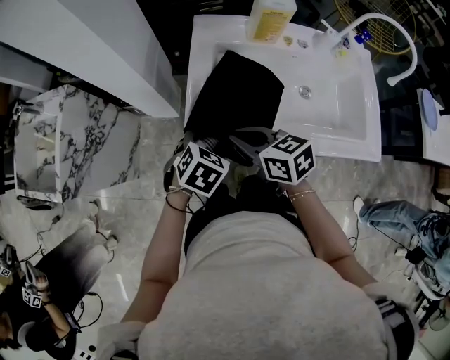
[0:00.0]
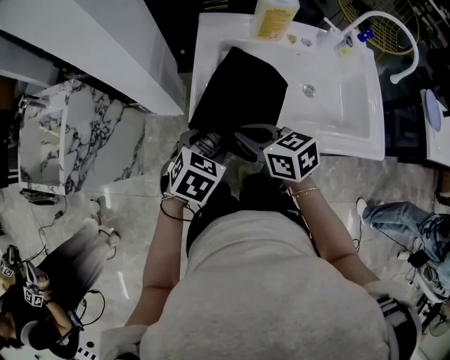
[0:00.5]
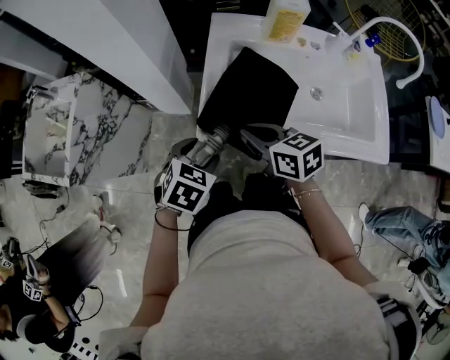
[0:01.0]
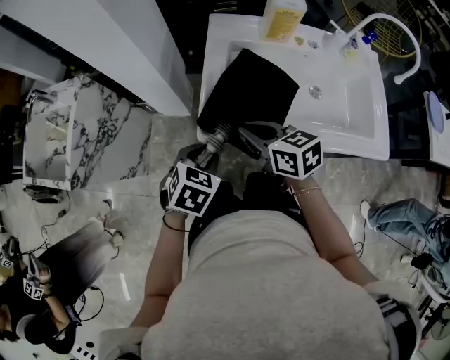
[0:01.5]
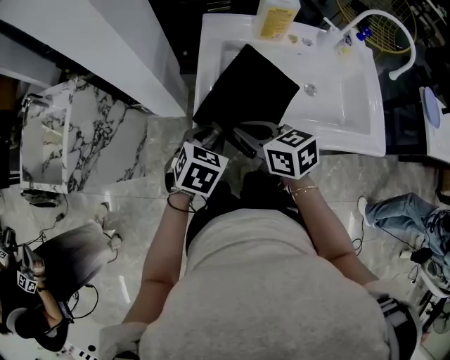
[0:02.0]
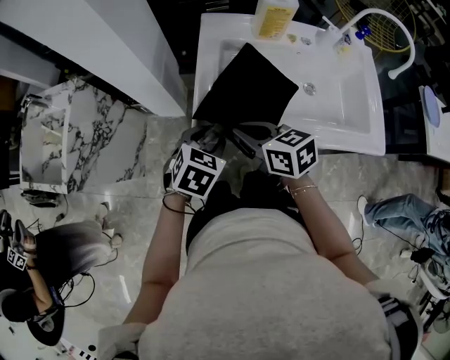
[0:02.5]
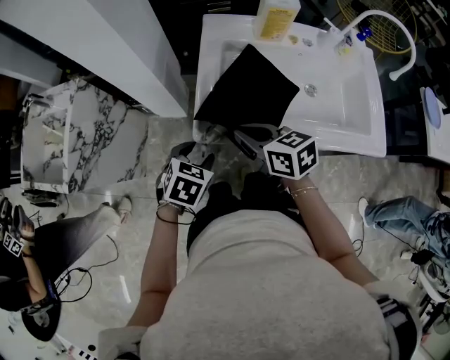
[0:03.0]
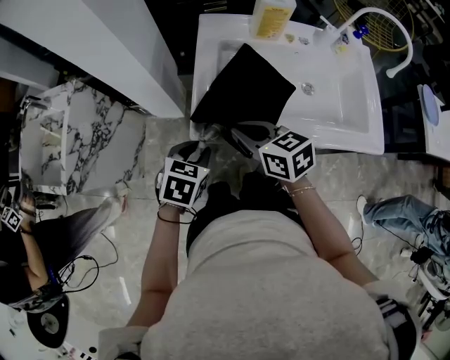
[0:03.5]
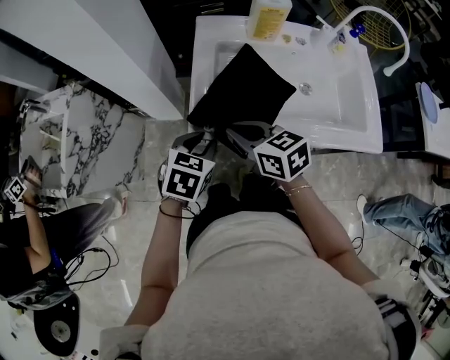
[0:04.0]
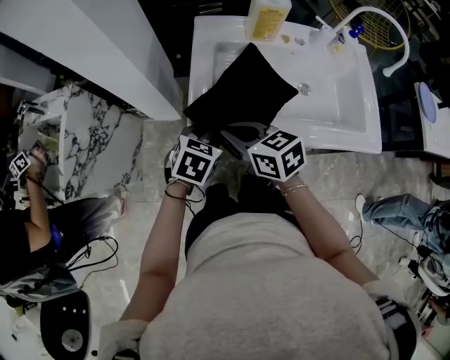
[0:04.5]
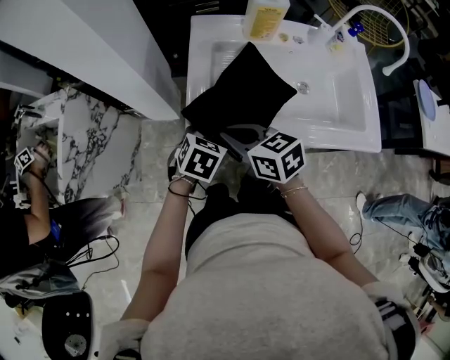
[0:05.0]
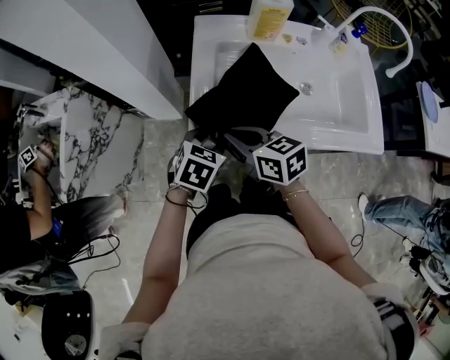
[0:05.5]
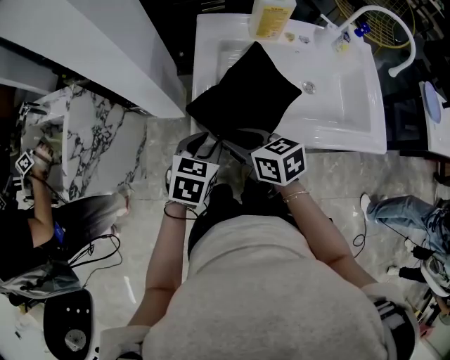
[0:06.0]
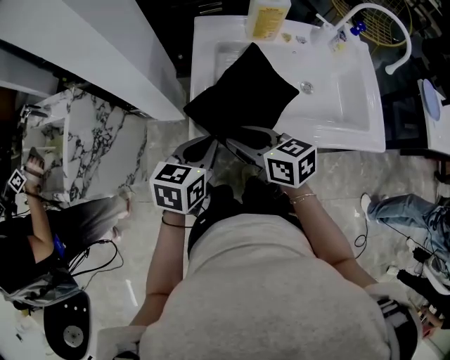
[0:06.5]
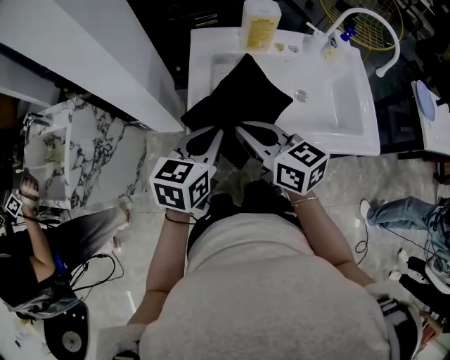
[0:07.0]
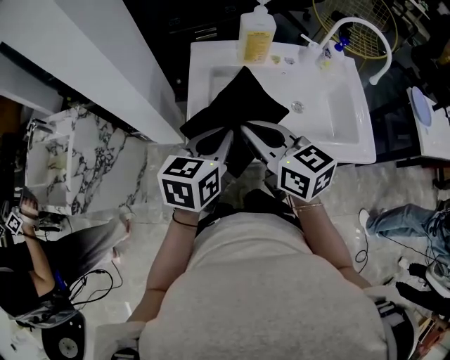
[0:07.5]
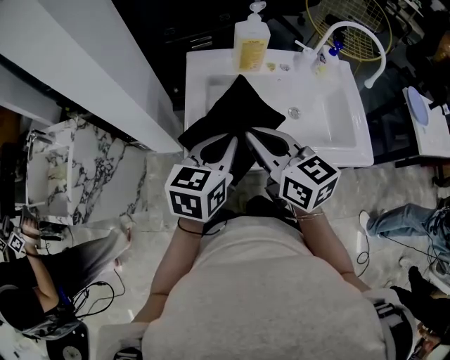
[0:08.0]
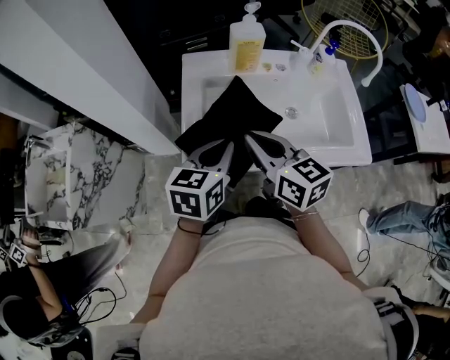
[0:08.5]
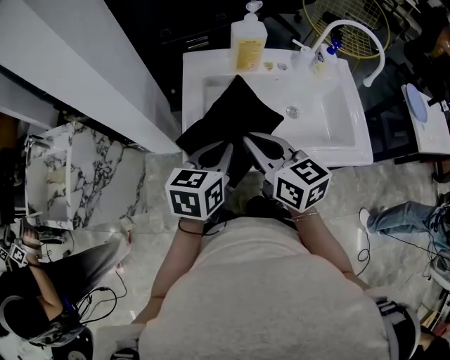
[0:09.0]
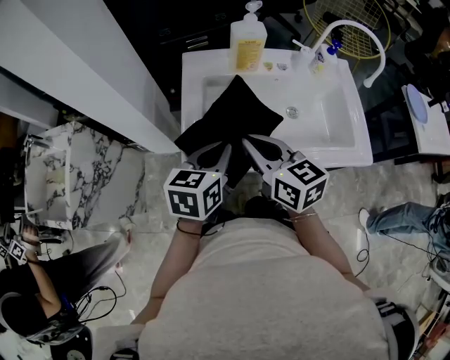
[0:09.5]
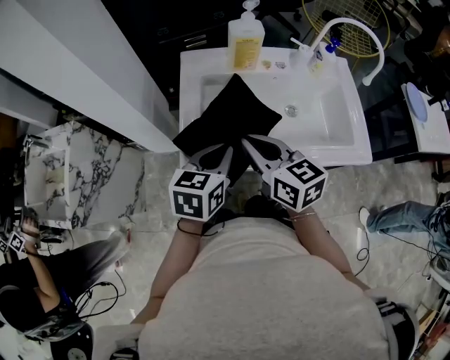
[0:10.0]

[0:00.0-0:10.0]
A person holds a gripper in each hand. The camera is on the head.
0:00.0 to 0:02.0: The left gripper closes its fingers.
0:02.0 to 0:04.0: The left gripper opens, then closes once more.
0:04.0 to 0:06.0: The right gripper opens up.
0:06.0 to 0:08.0: The grippers both shift upward and to the right by roughly 15 cm. The left gripper swivels about 20 degrees, and closes, while the right gripper turns by approximately 30 degrees, and closes up.
0:08.0 to 0:10.0: The grippers move only a little.

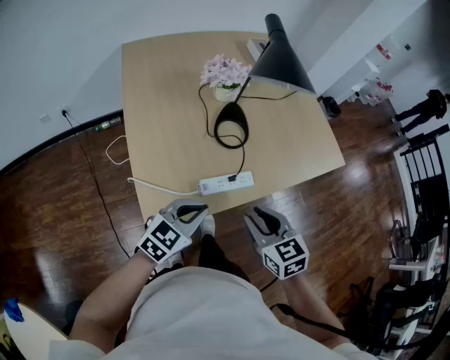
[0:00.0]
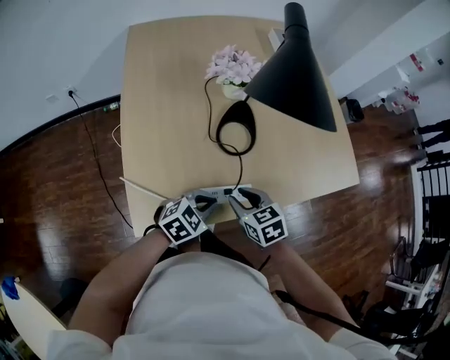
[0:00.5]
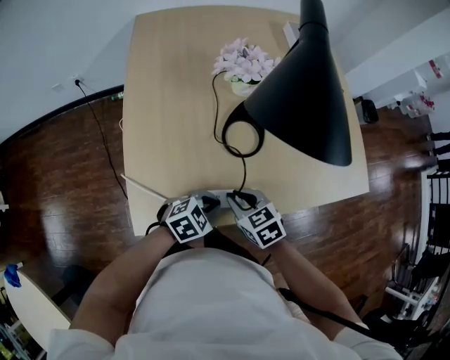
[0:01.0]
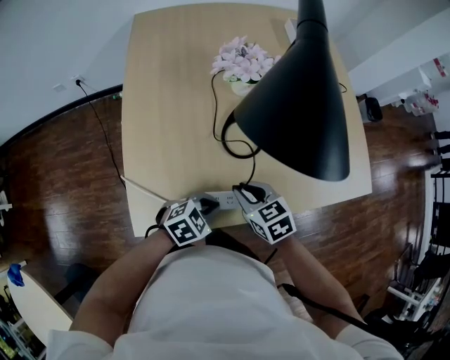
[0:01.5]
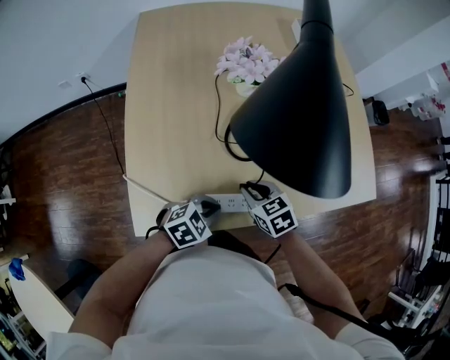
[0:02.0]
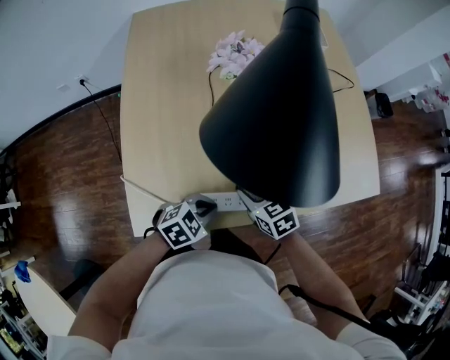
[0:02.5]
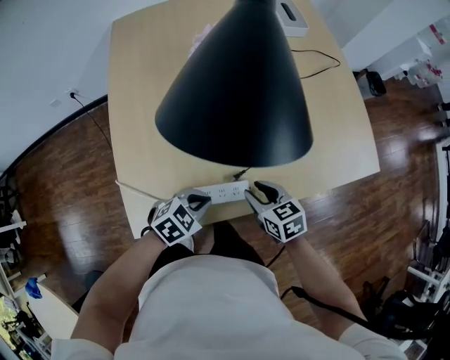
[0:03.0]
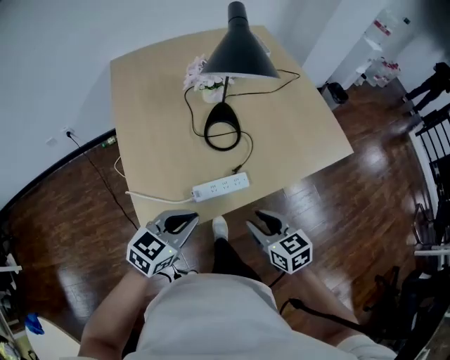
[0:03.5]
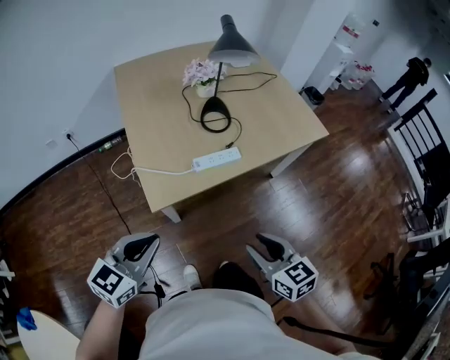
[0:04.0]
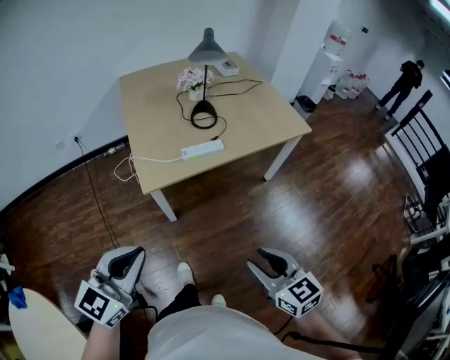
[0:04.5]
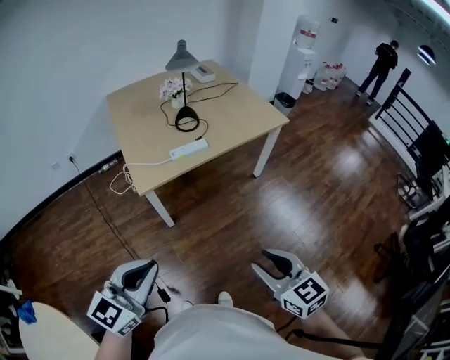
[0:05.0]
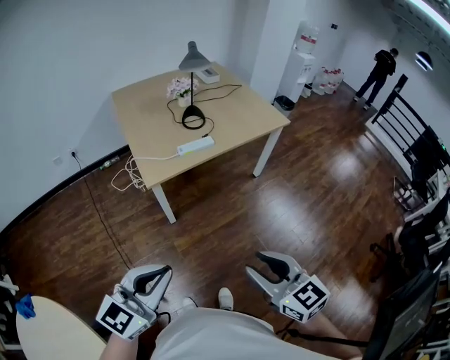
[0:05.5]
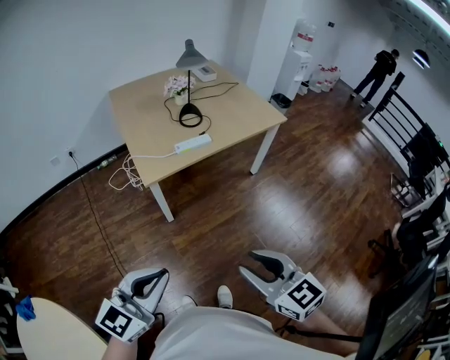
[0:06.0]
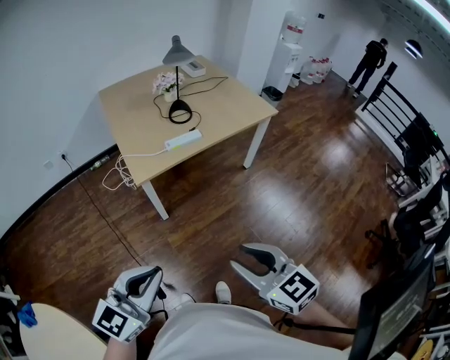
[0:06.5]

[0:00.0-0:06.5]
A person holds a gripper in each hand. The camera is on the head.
0:00.0 to 0:02.0: The left gripper is displaced downward by roughly 15 cm, and changes its angle by about 30 degrees. The right gripper shifts by roughly 25 cm, and changes its angle by some 20 degrees.
0:02.0 to 0:04.5: The two grippers travel together, approximately 50 cm. The right gripper turns by roughly 30 degrees. The left gripper points its fingers roughly 40 degrees further upward.
0:04.5 to 0:06.5: The right gripper is displaced backward and upward by roughly 15 cm. The left gripper goes roughly 15 cm backward.

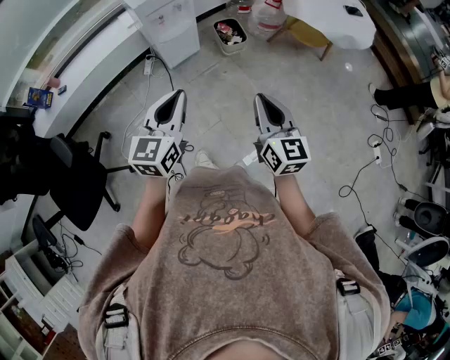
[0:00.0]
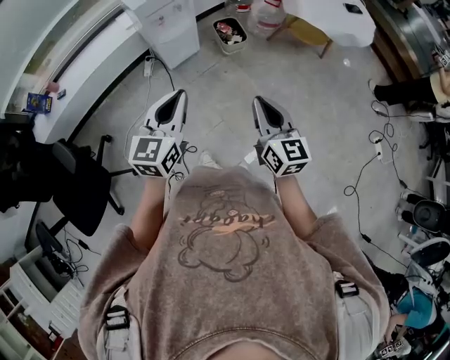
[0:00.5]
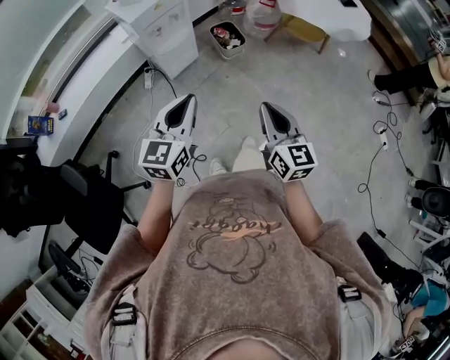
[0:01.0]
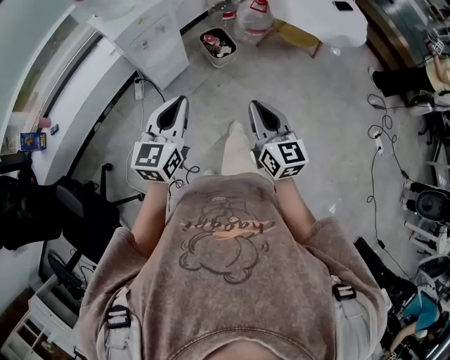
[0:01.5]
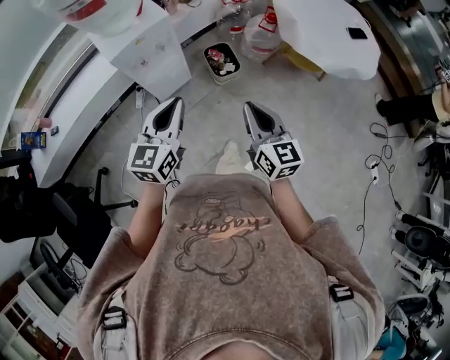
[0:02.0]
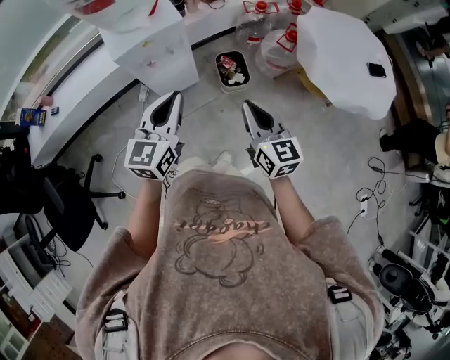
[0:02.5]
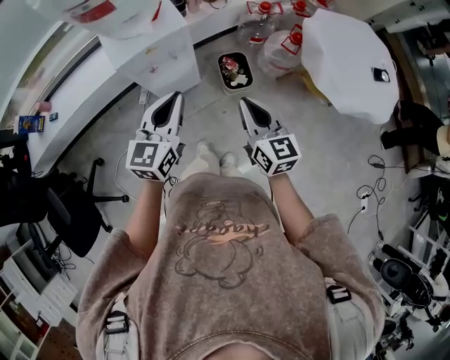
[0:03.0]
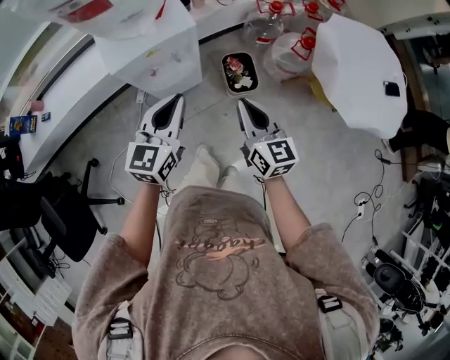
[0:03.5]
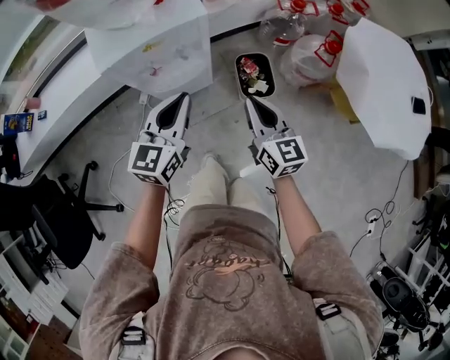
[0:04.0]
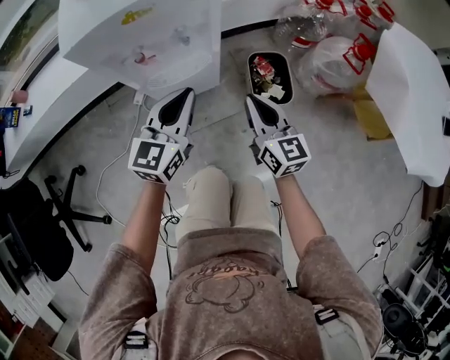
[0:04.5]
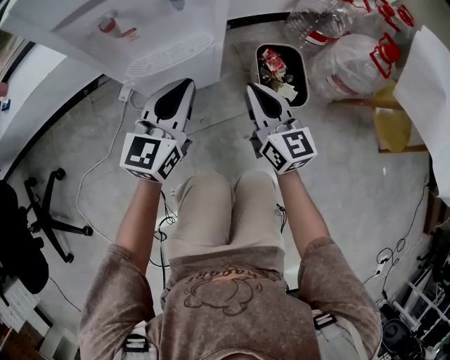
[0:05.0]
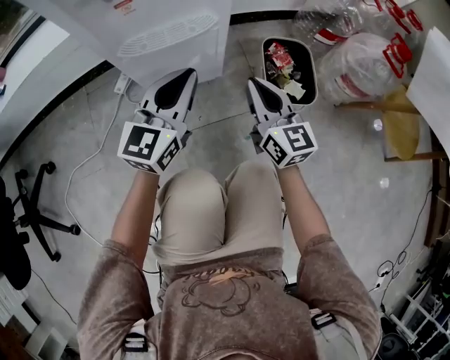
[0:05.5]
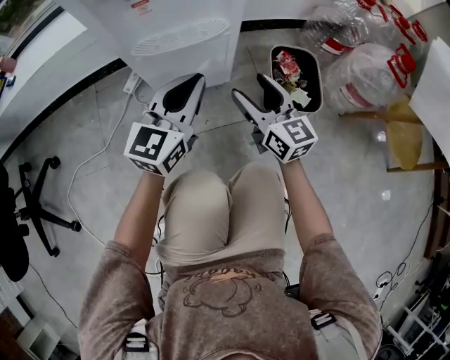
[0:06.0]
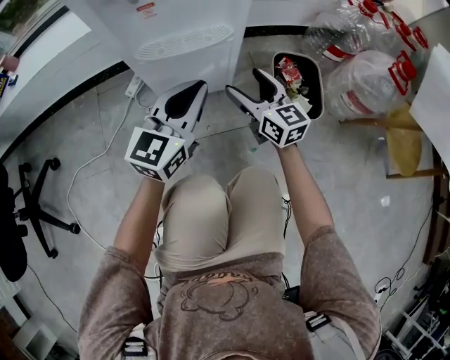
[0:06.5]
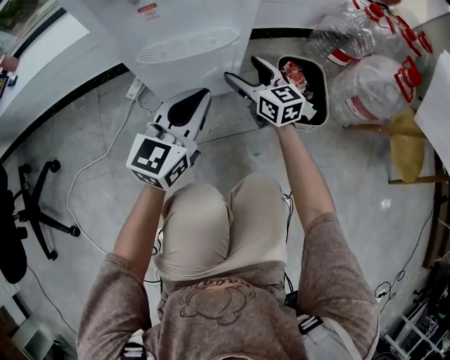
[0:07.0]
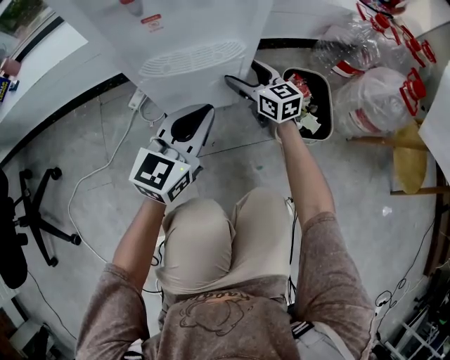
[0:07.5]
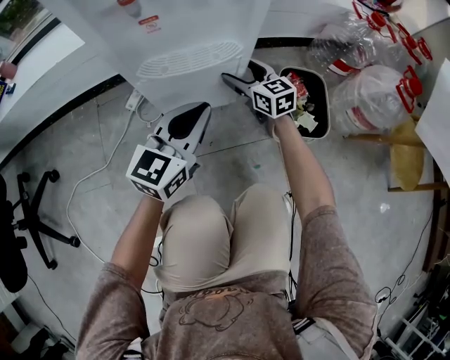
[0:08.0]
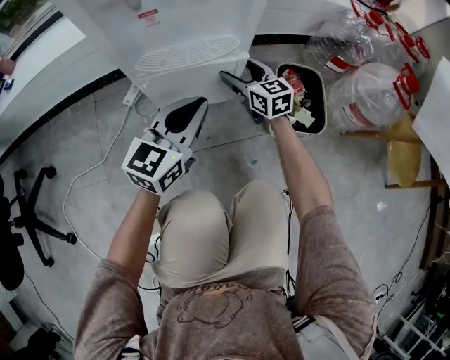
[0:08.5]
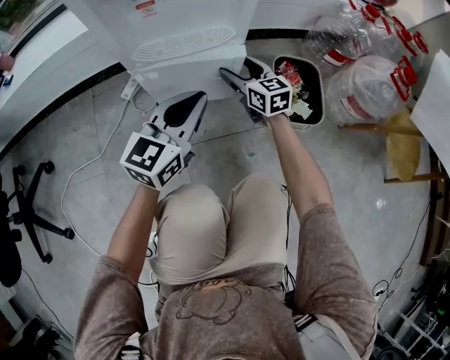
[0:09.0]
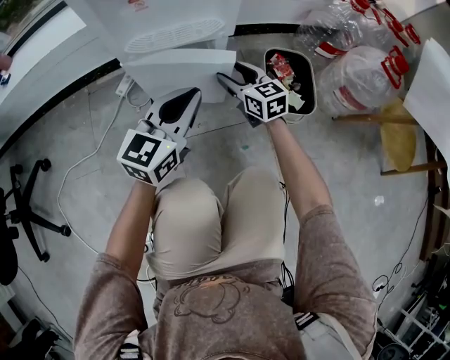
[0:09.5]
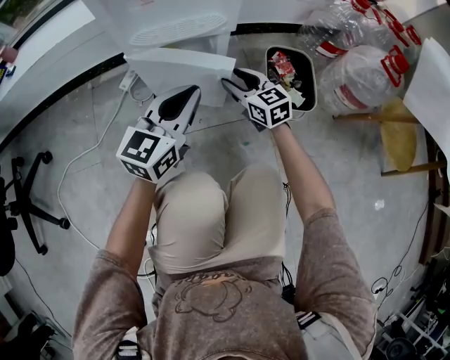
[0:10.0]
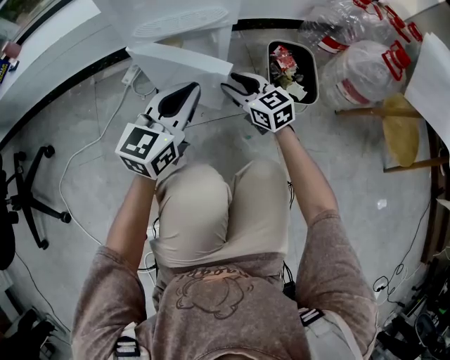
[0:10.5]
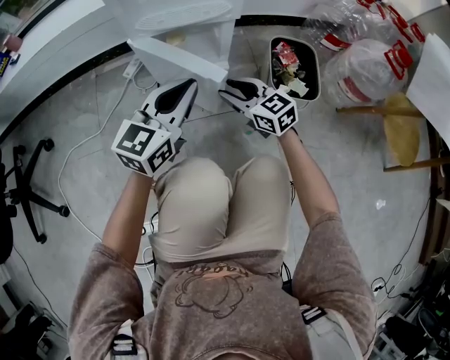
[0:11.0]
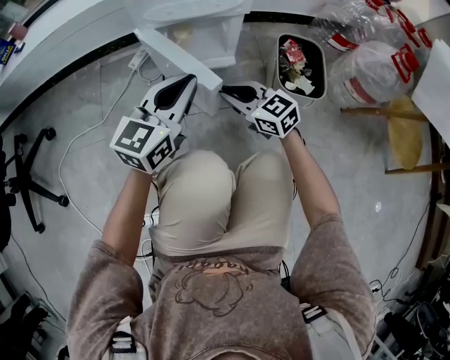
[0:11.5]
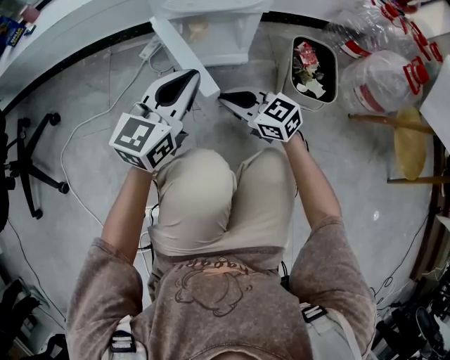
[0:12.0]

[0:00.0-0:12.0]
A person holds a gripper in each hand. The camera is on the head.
0:00.0 to 0:02.0: Both grippers travel together forward, approximately 25 cm.
0:02.0 to 0:04.0: The two grippers go approximately 30 cm forward and downward.
0:04.0 to 0:06.0: The two grippers go roughly 35 cm downward. The right gripper opens its fingers.
0:06.0 to 0:08.0: The right gripper travels forward and downward by approximately 20 cm.
0:08.0 to 0:10.0: The right gripper shifts roughly 10 cm backward, and closes its fingers; the left gripper heads backward, covering some 5 cm.
0:10.0 to 0:12.0: The left gripper moves to the left, about 5 cm; the right gripper heads backward and to the left, covering approximately 15 cm, turns by some 30 degrees, and closes.
